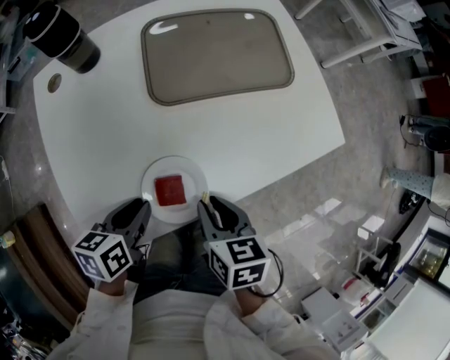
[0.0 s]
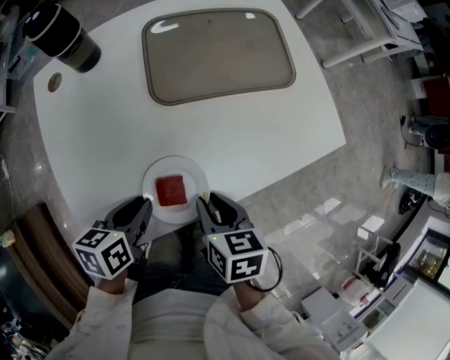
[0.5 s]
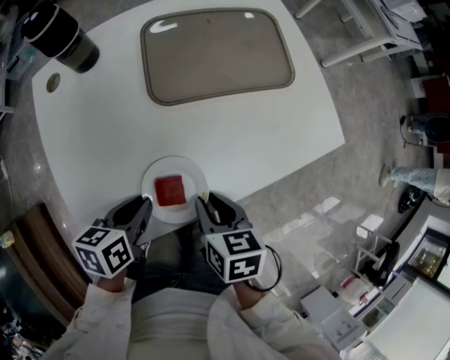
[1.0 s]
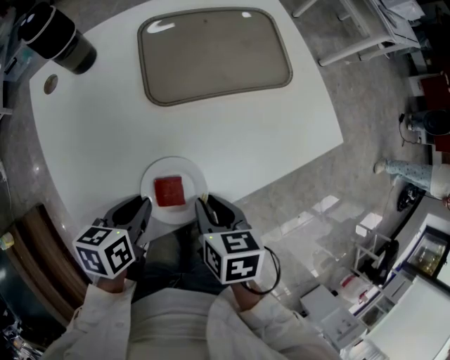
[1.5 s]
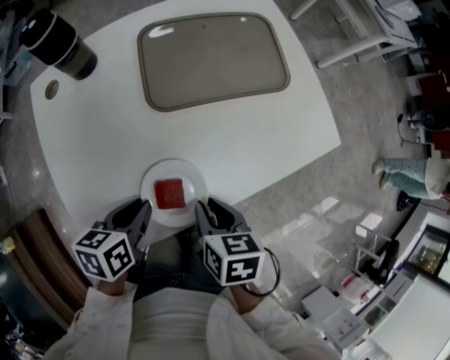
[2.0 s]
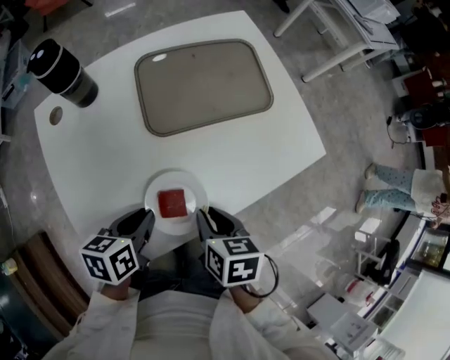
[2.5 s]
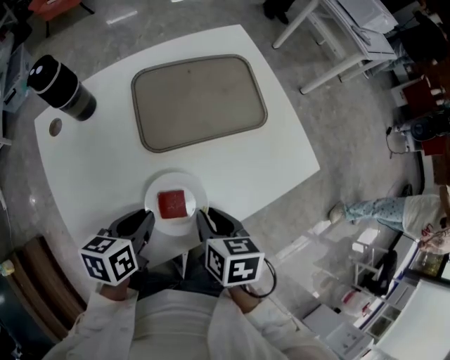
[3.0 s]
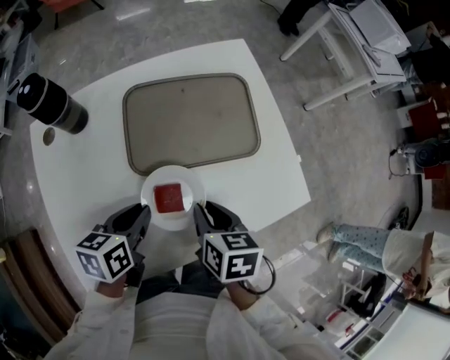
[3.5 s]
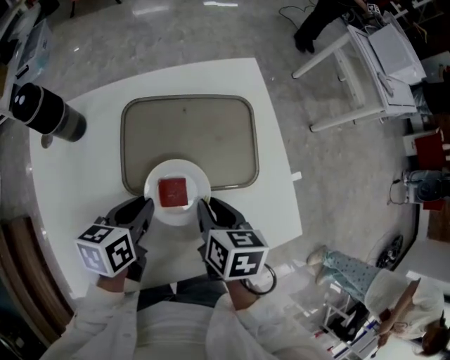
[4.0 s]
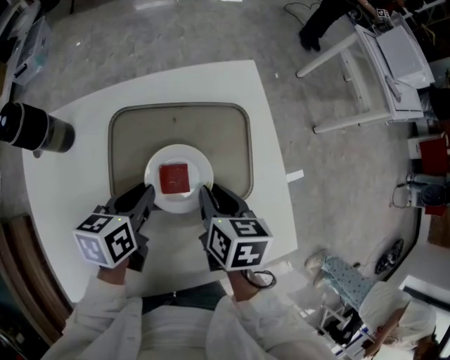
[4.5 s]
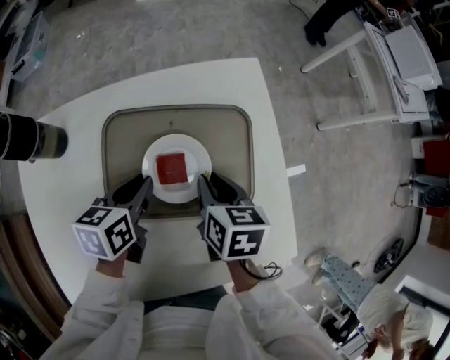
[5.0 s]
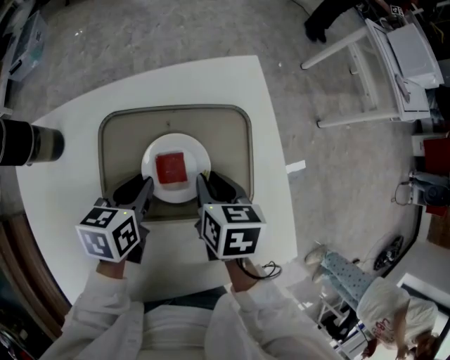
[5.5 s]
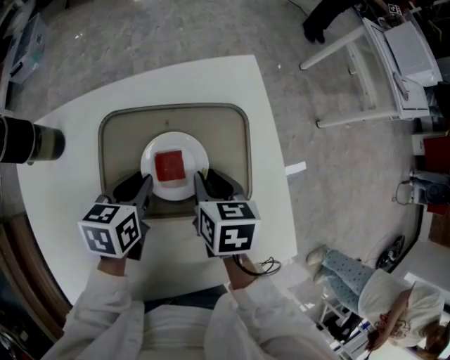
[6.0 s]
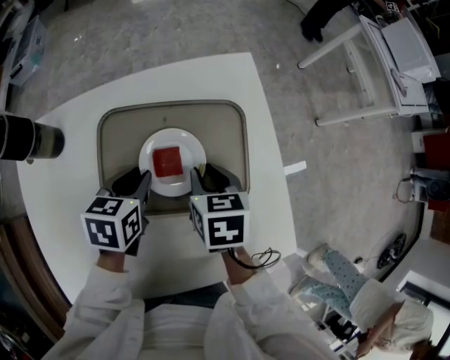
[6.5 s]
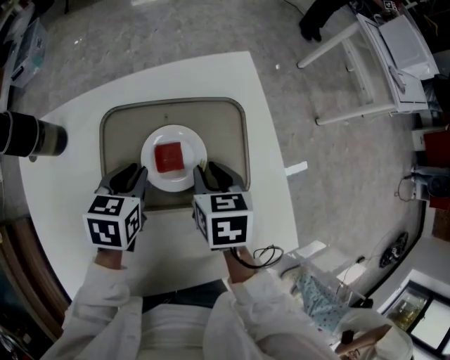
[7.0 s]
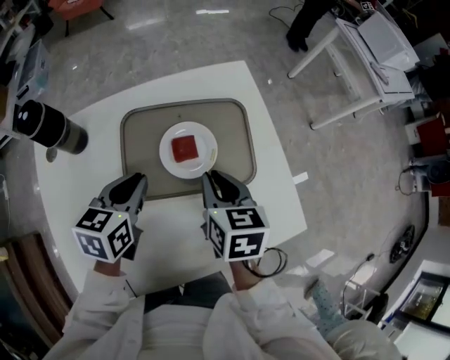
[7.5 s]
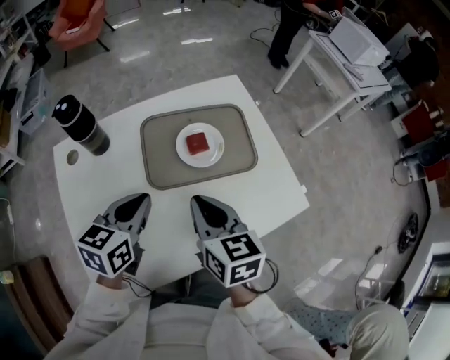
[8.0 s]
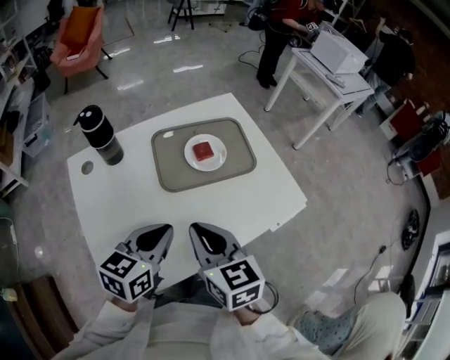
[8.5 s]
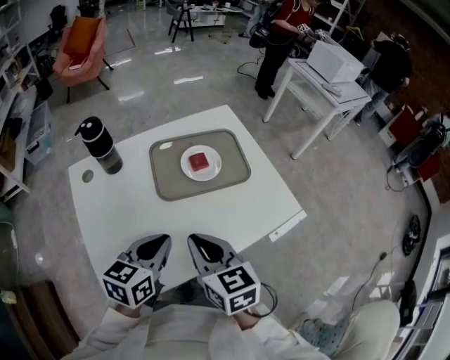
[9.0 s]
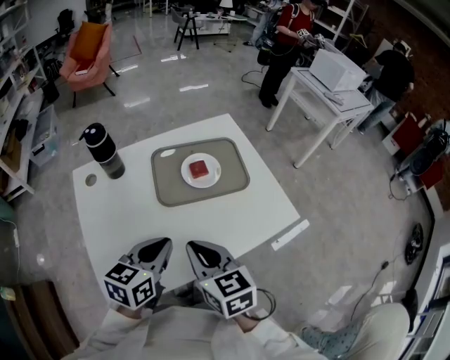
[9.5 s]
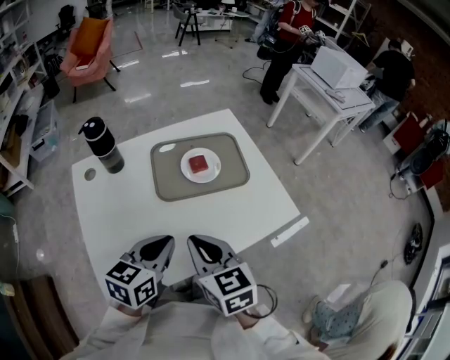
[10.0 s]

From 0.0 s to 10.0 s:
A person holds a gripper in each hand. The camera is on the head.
From 0.0 s to 2.0 s: The grippers stay close to where they were, moving slightly.
From 2.0 s to 4.0 s: Both grippers move forward, approximately 25 cm.
From 4.0 s to 6.0 s: The two grippers go about 15 cm forward.
From 6.0 s to 8.0 s: The grippers both shift backward, upward and to the left by approximately 25 cm. The left gripper turns by roughly 30 degrees. The right gripper rotates approximately 20 degrees.
From 8.0 s to 10.0 s: Both grippers move backward, some 15 cm.

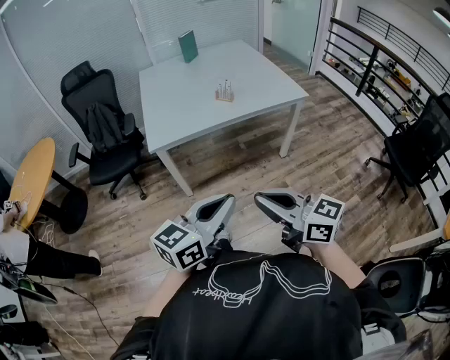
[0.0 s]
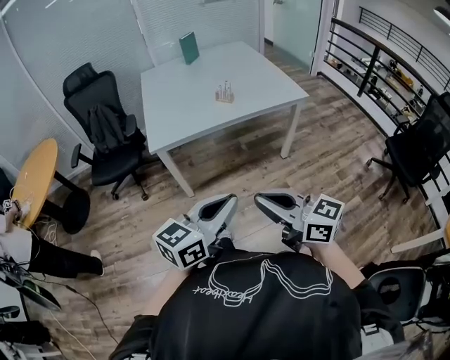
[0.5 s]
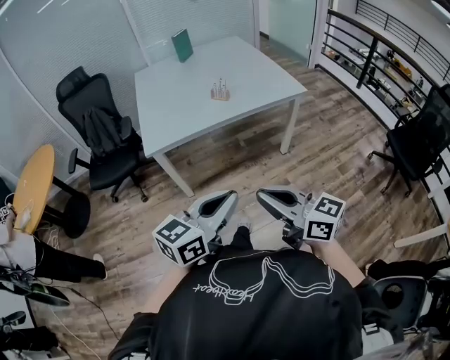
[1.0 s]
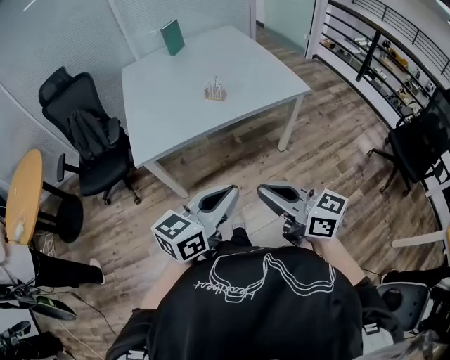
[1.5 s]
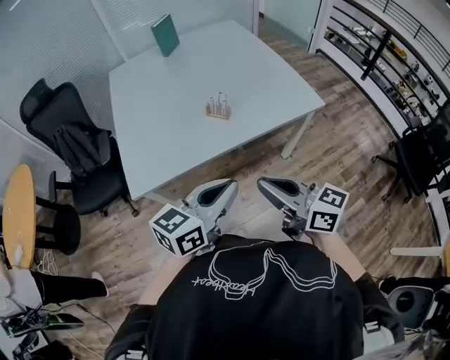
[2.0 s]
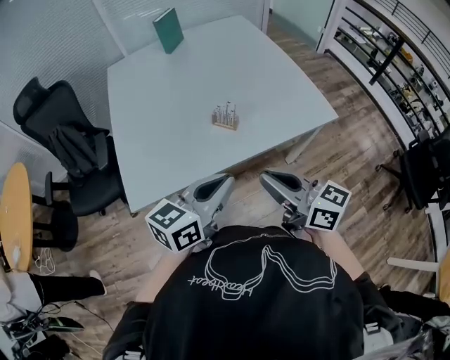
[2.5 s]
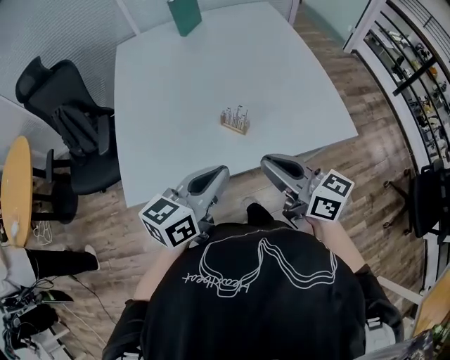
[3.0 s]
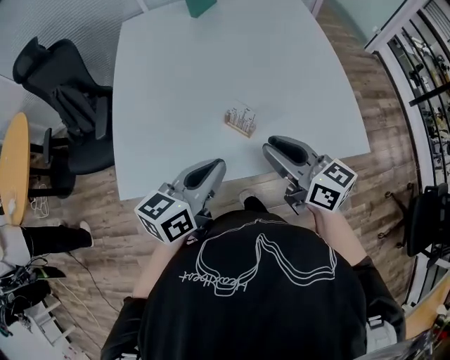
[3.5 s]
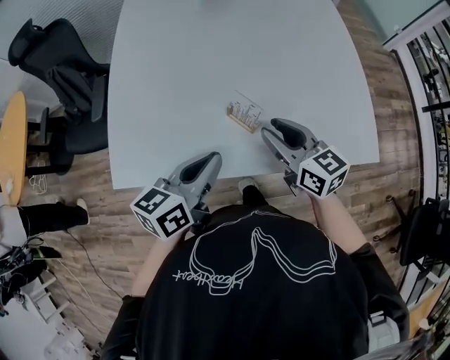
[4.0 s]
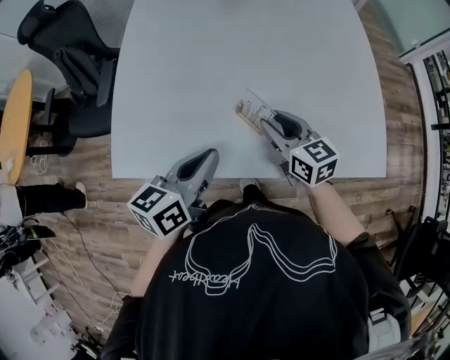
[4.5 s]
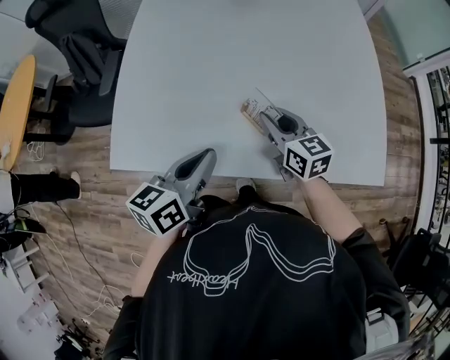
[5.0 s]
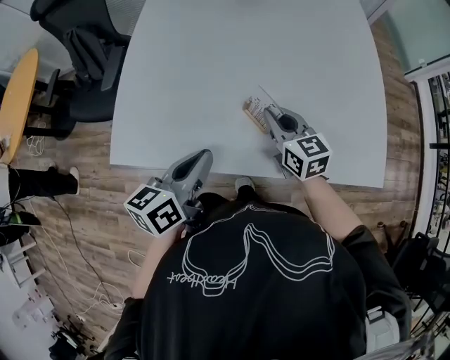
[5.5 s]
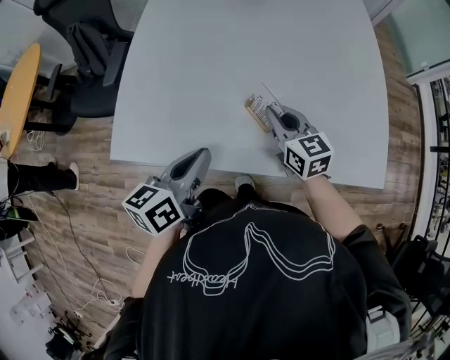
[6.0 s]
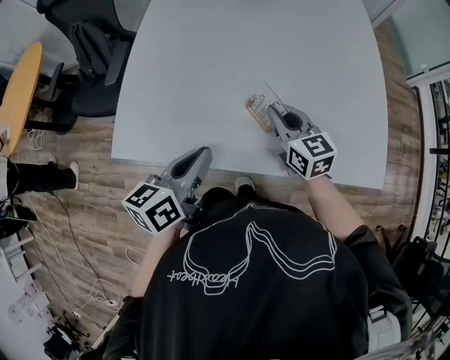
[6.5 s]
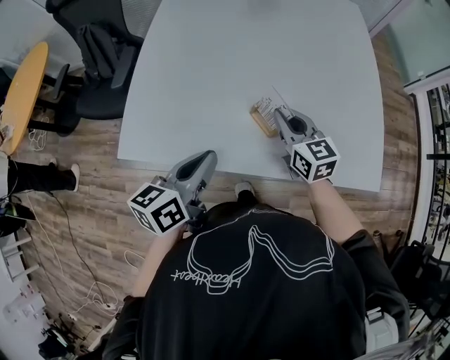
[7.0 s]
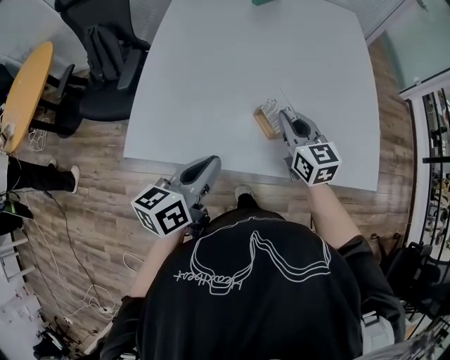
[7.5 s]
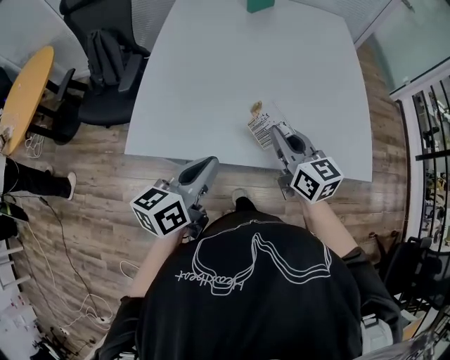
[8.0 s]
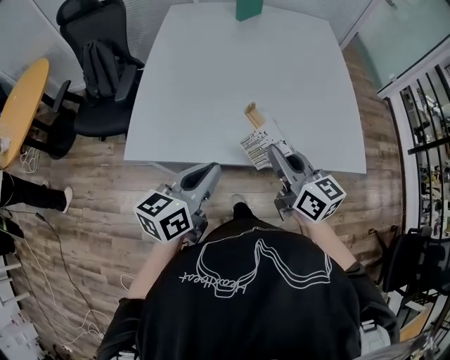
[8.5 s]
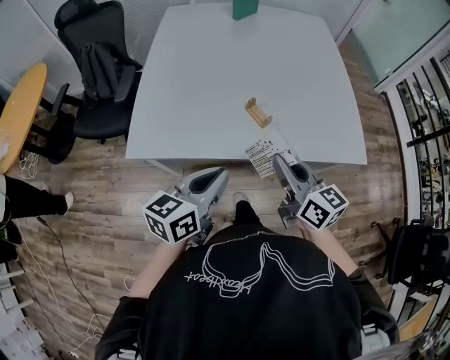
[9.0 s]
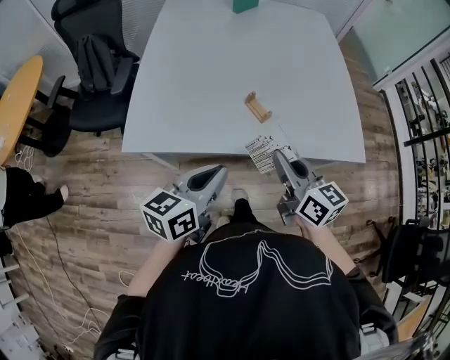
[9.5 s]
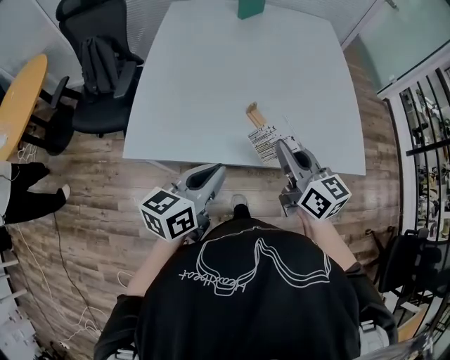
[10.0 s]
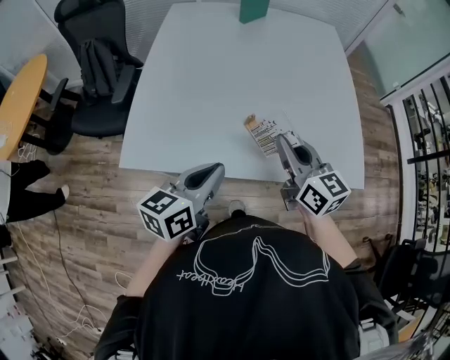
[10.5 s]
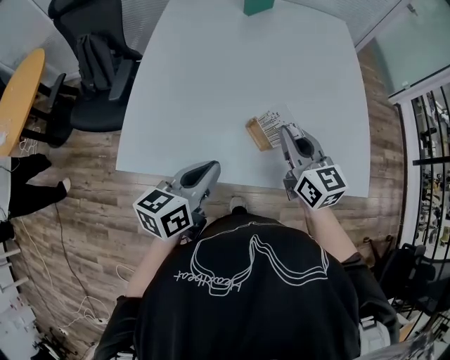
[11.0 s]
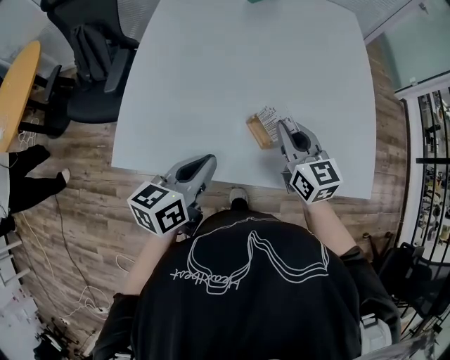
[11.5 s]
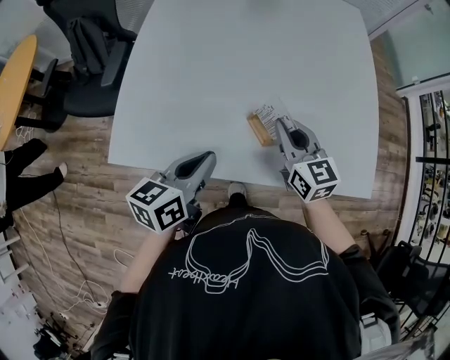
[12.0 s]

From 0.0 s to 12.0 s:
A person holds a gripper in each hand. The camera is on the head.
From 0.0 s to 2.0 s: Both grippers move forward, some 35 cm.
From 2.0 s to 4.0 s: The grippers both shift forward by about 35 cm. The right gripper opens. The left gripper rotates about 30 degrees.
From 4.0 s to 6.0 s: The right gripper goes about 10 cm downward and forward, and closes up. Meanwhile the left gripper heads to the left, covering roughly 5 cm.
From 6.0 s to 8.0 s: The right gripper travels upward and backward by approximately 15 cm. Meanwhile the left gripper goes approximately 10 cm backward and upward.
From 8.0 s to 10.0 s: The right gripper shifts approximately 5 cm backward.
From 10.0 s to 12.0 s: The grippers both shift forward and downward by approximately 15 cm.

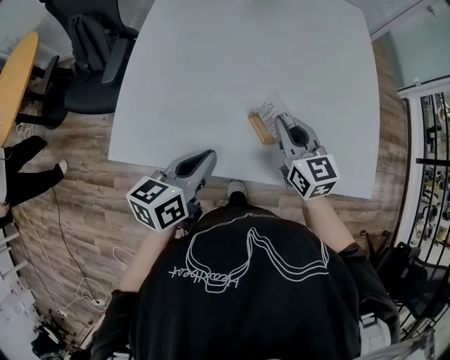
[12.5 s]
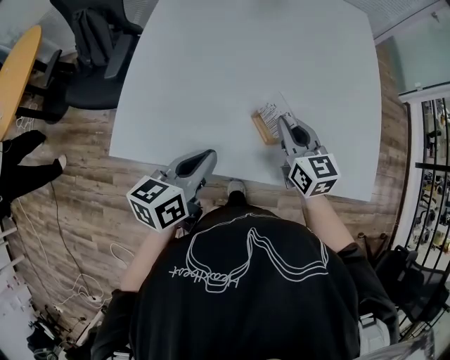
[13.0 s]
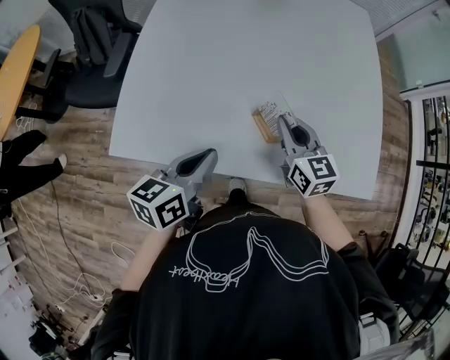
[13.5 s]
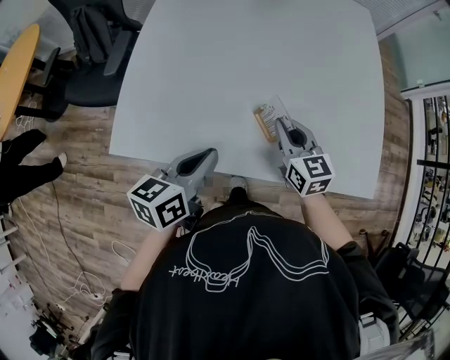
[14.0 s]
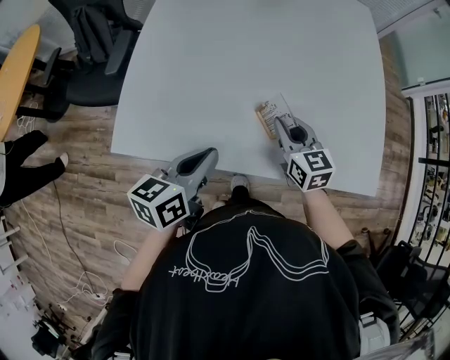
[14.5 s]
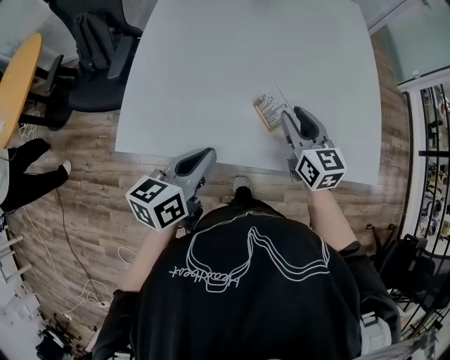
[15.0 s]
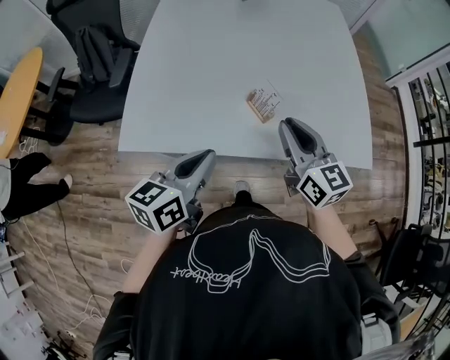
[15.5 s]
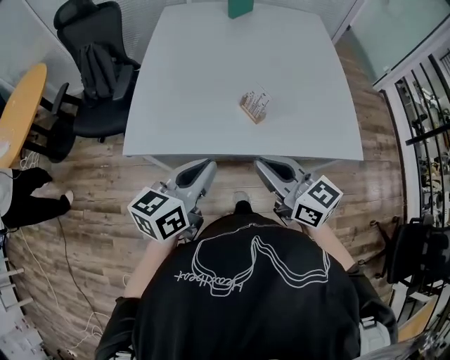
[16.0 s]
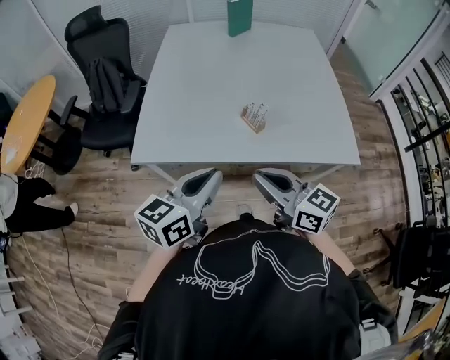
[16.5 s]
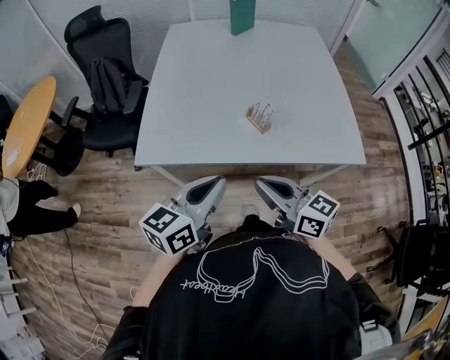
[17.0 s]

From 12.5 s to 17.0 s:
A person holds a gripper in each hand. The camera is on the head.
From 12.5 s to 14.5 s: The right gripper goes approximately 5 cm downward.
From 14.5 s to 17.0 s: The right gripper travels backward and upward by approximately 35 cm, and turns by about 30 degrees. The left gripper travels backward and upward by some 20 cm, and swivels about 20 degrees.
